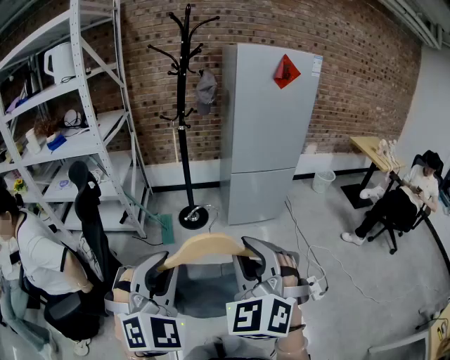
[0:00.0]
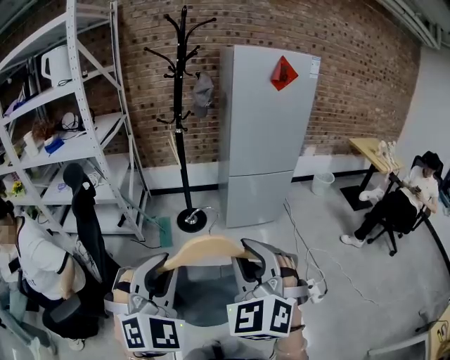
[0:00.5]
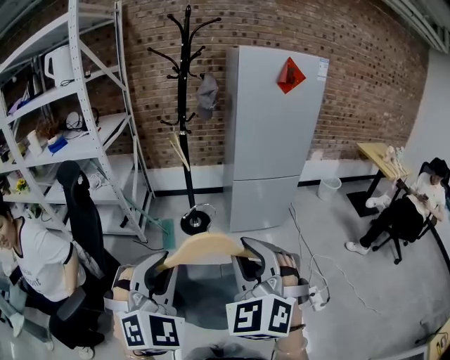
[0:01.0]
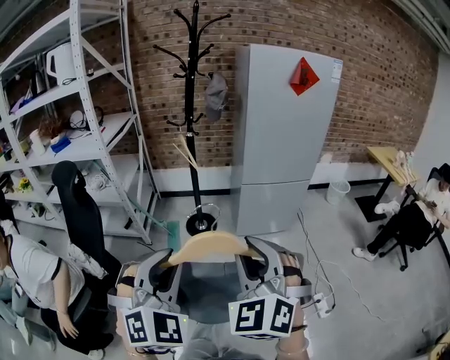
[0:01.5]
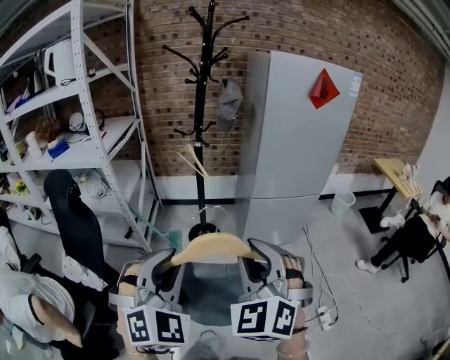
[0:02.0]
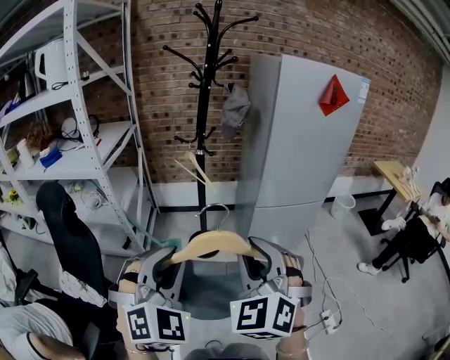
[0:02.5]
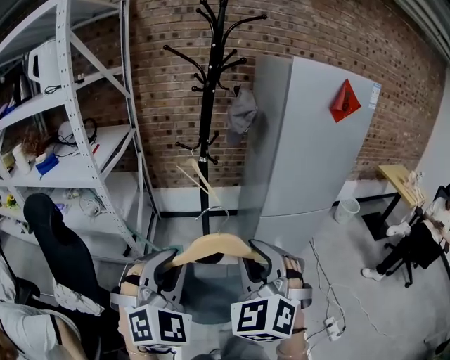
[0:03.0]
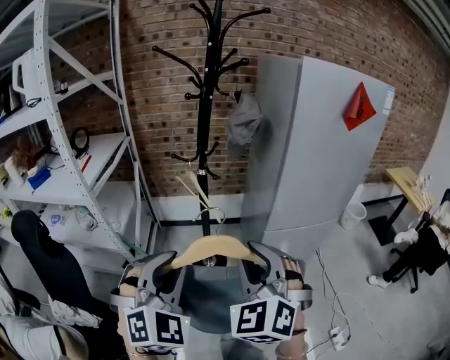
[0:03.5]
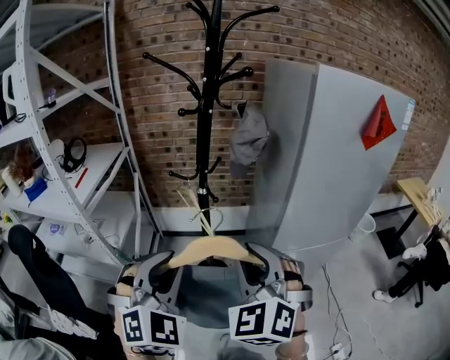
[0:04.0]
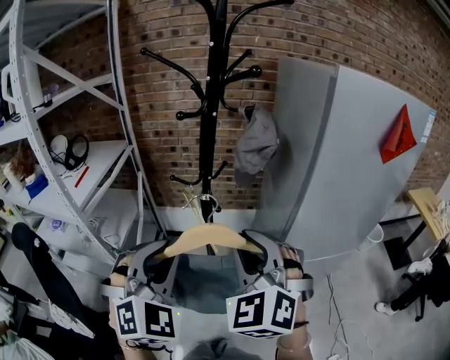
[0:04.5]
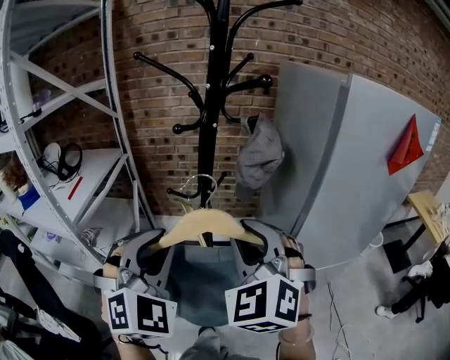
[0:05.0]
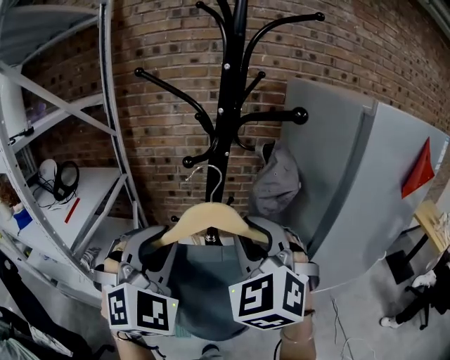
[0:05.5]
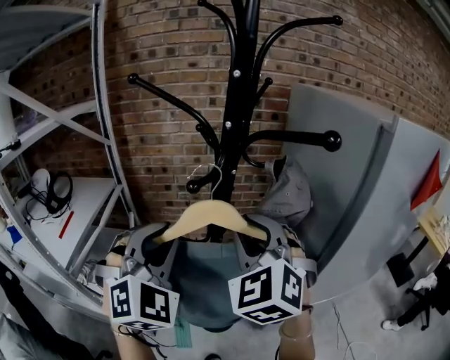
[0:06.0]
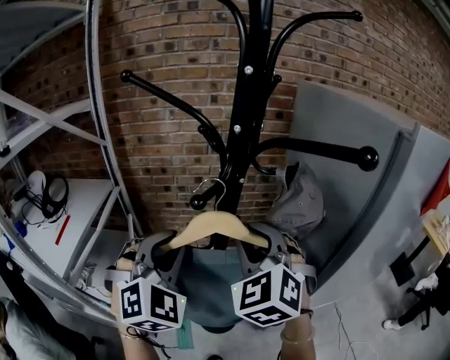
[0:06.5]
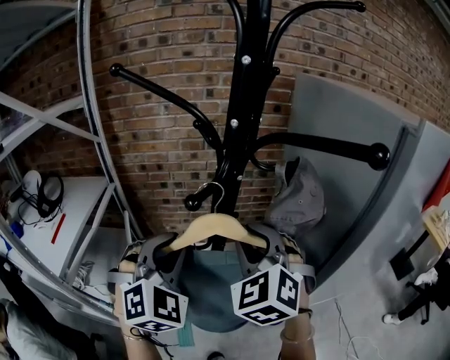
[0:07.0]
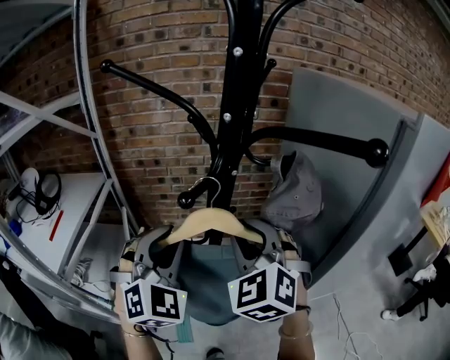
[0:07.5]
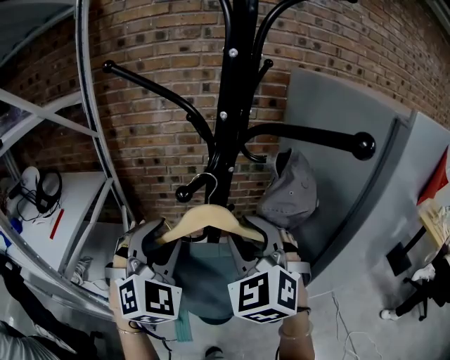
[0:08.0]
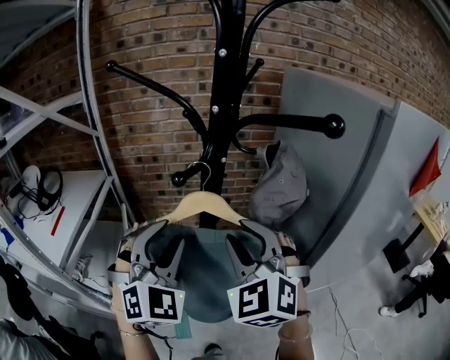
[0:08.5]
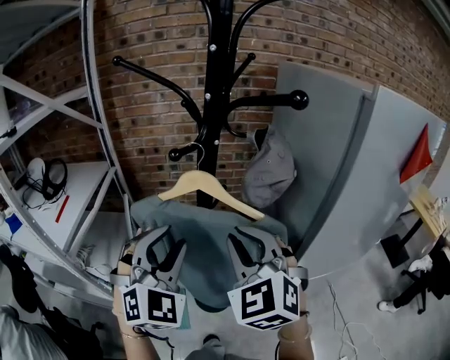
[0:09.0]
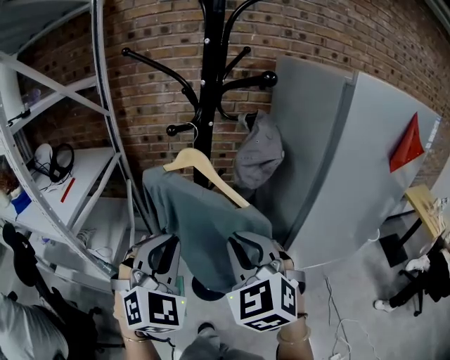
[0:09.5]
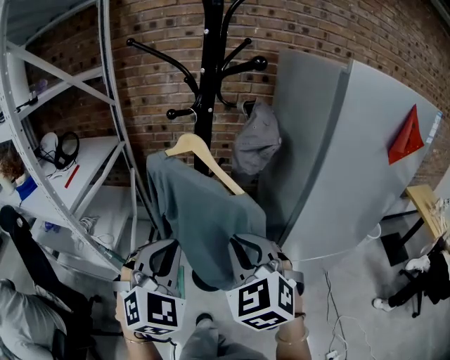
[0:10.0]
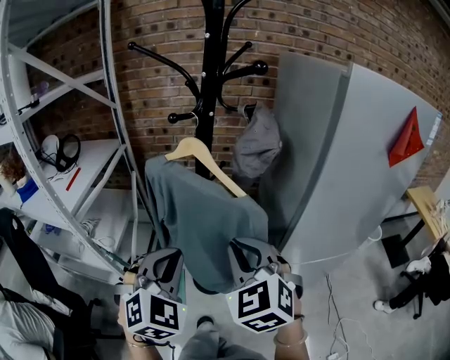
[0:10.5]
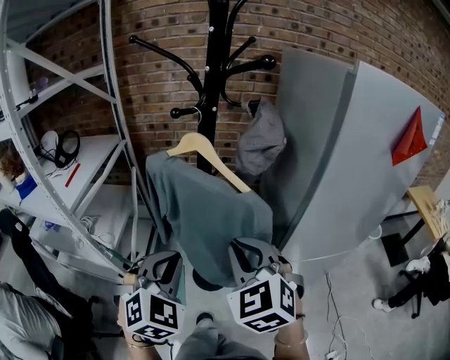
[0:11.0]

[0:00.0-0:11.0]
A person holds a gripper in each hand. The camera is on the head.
0:00.0 to 0:02.0: The grippers both shift forward by roughly 20 cm.
0:02.0 to 0:03.5: The two grippers go roughly 25 cm forward.
0:03.5 to 0:05.5: Both grippers travel together forward, approximately 30 cm.
0:05.5 to 0:07.5: Both grippers travel together forward and downward, about 15 cm.
0:07.5 to 0:09.0: The grippers both shift backward by some 10 cm.
0:09.0 to 0:11.0: Both grippers travel together backward and downward, approximately 15 cm. The left gripper closes its fingers.

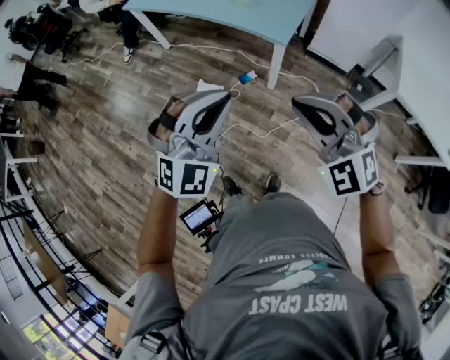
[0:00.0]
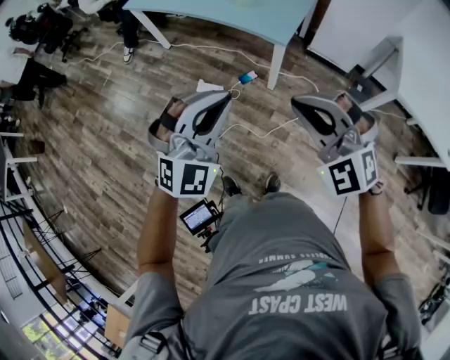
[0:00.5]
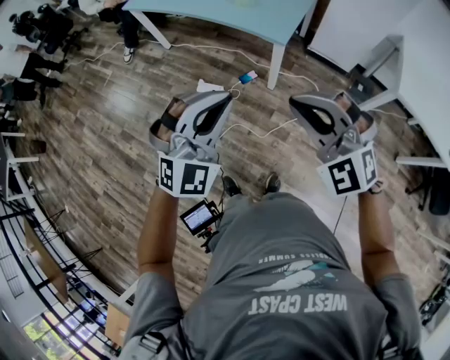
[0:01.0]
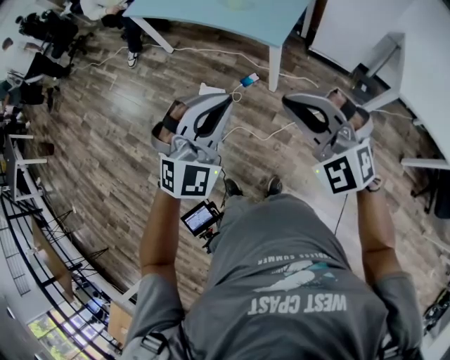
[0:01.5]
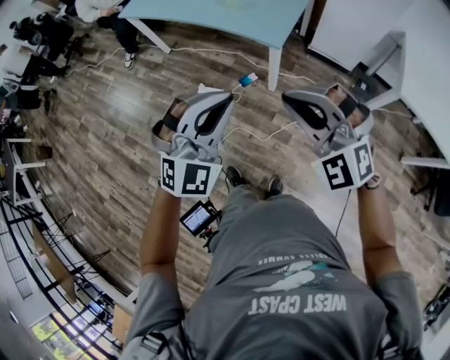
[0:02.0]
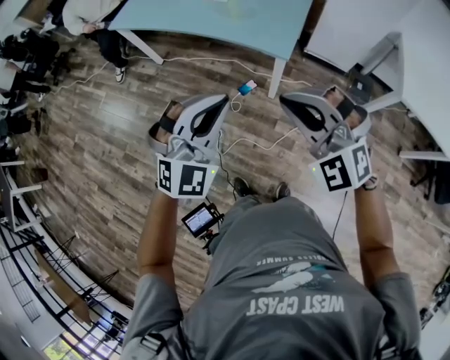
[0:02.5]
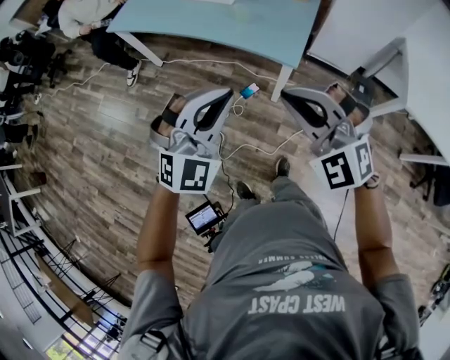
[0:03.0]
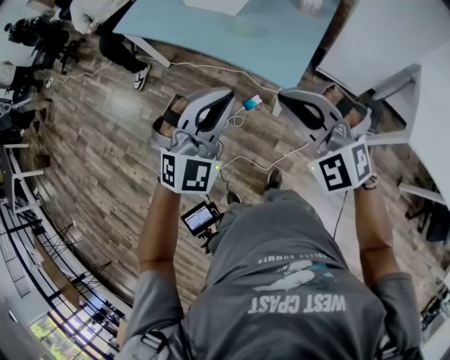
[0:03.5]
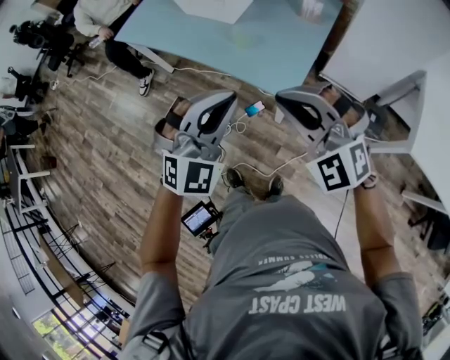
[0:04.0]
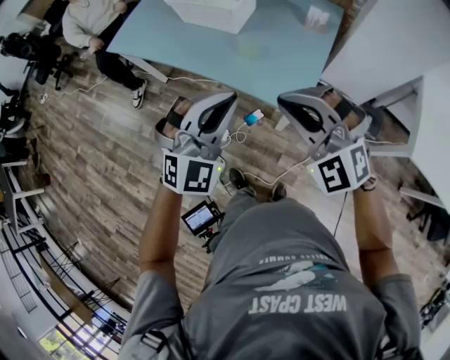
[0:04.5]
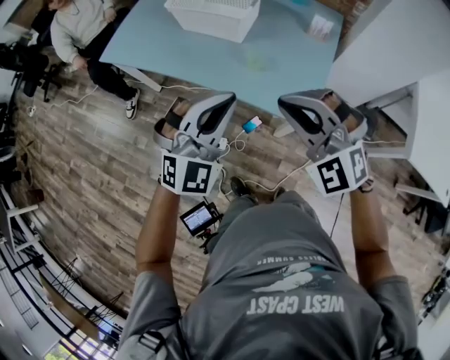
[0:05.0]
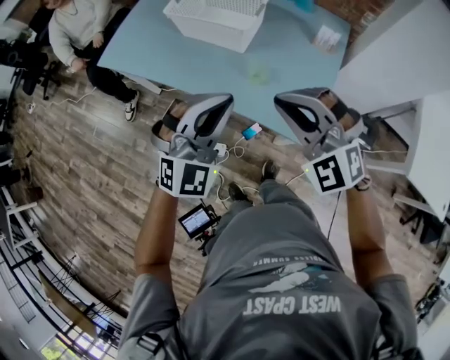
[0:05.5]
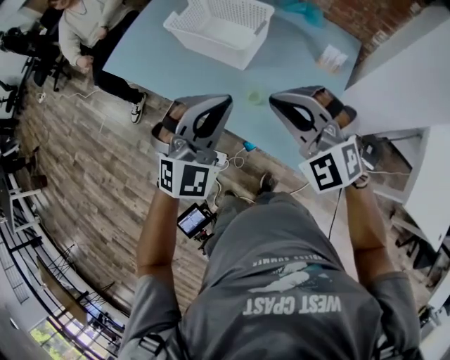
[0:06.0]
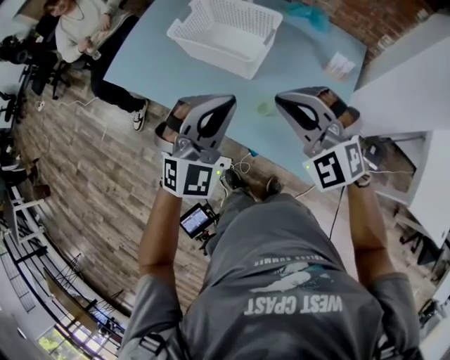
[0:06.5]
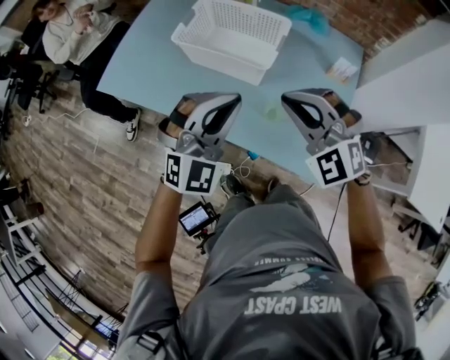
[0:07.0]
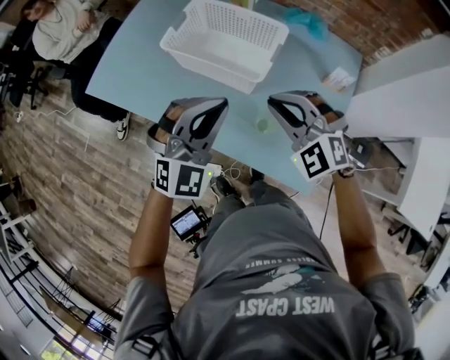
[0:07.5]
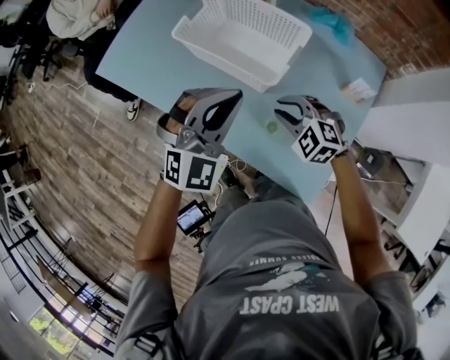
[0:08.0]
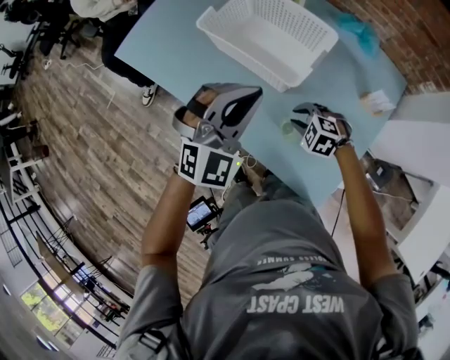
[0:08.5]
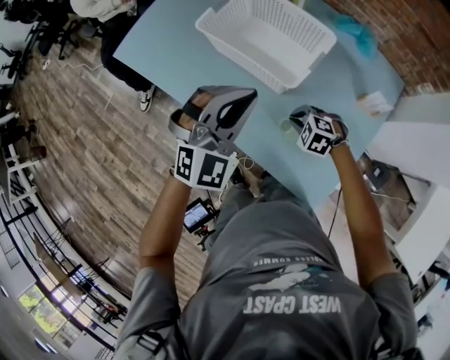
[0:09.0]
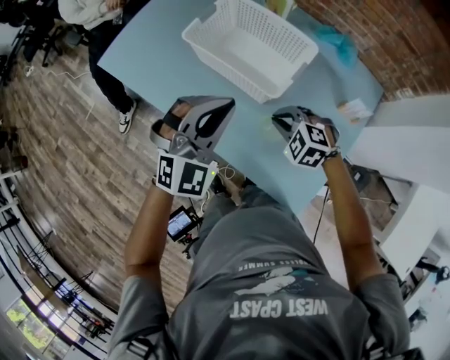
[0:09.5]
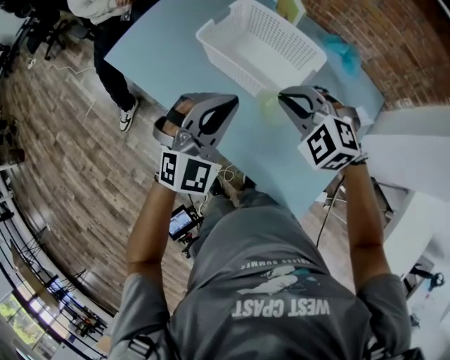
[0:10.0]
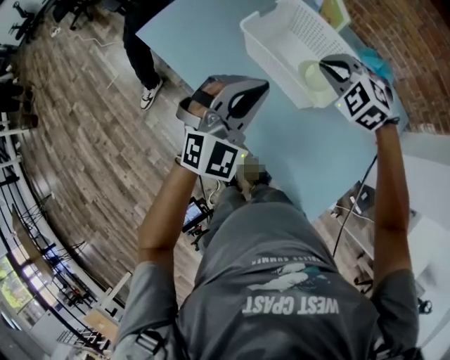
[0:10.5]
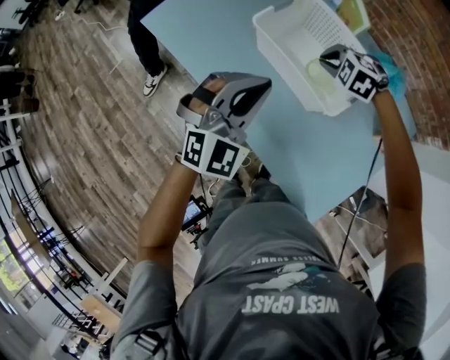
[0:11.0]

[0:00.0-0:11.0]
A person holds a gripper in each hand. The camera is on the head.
0:00.0 to 0:02.0: The right gripper moves roughly 5 cm; the left gripper shifts roughly 5 cm to the right.
0:02.0 to 0:03.5: Both grippers travel together forward, roughly 25 cm.
0:03.5 to 0:05.5: The two grippers go some 25 cm forward.
0:05.5 to 0:07.5: The two grippers go roughly 20 cm forward.
0:07.5 to 0:09.0: The right gripper heads downward, covering some 25 cm, and tips its fingers downward by approximately 40 degrees.
0:09.0 to 0:11.0: The left gripper shifts approximately 10 cm to the left and forward. Meanwhile the right gripper heads forward and upward, covering about 25 cm.

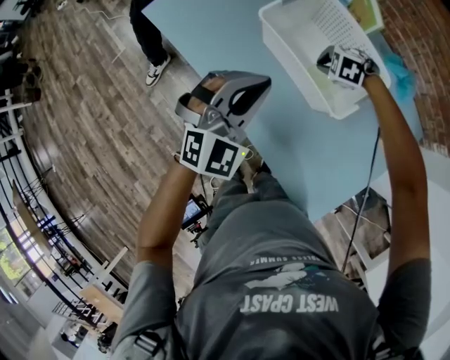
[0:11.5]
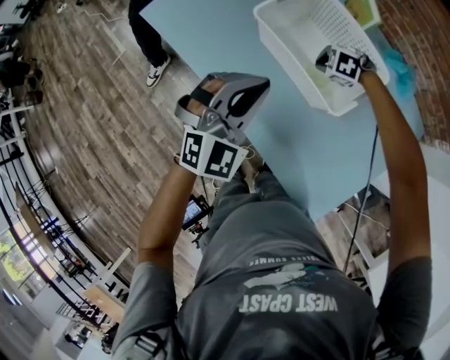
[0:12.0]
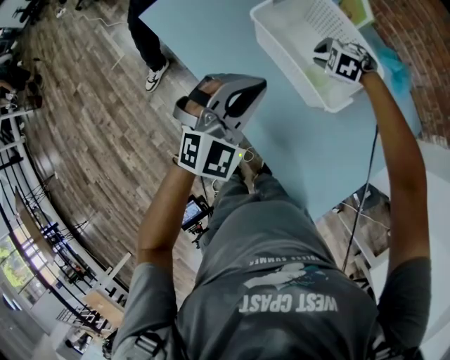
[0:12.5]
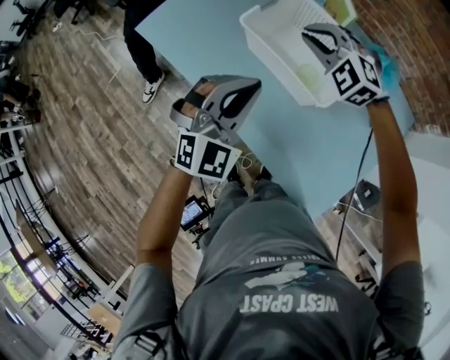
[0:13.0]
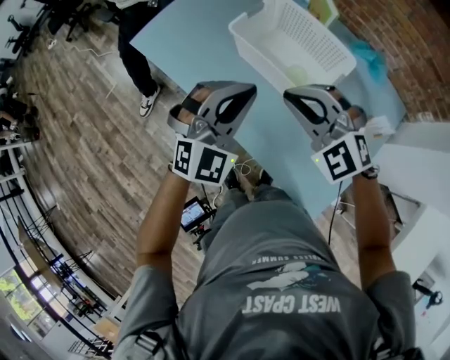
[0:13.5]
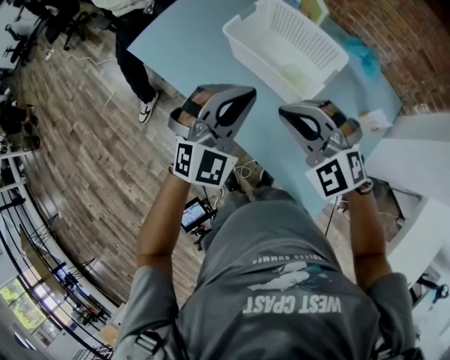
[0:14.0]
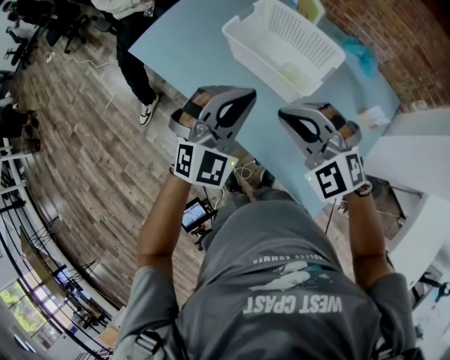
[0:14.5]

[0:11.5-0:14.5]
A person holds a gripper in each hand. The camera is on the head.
0:11.5 to 0:13.0: The right gripper goes approximately 20 cm upward, and angles its fingers upward, by approximately 40 degrees.
0:13.0 to 0:14.5: The right gripper travels backward by roughly 25 cm. The left gripper is displaced backward by approximately 5 cm.

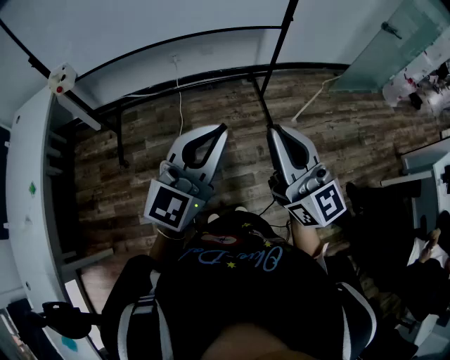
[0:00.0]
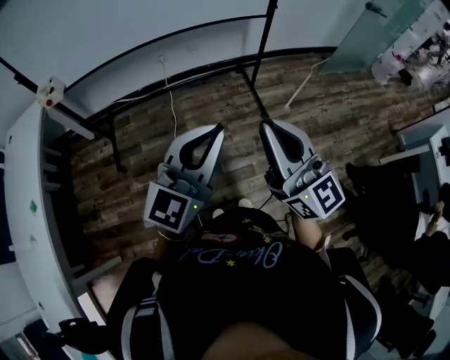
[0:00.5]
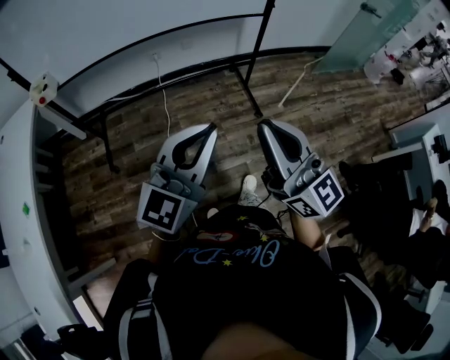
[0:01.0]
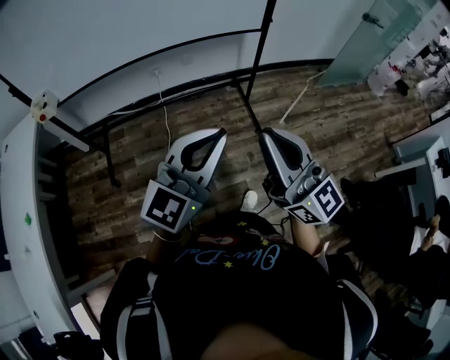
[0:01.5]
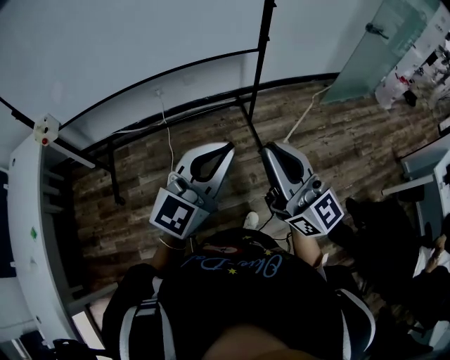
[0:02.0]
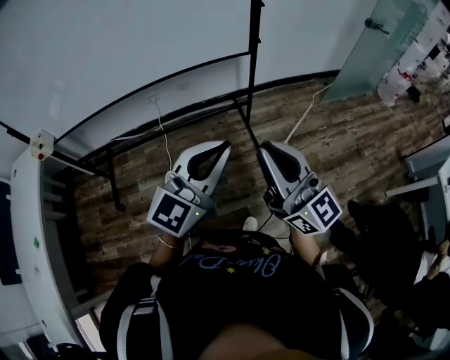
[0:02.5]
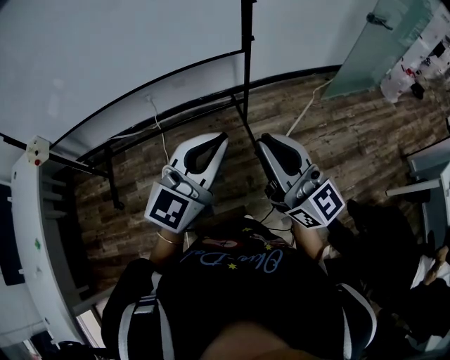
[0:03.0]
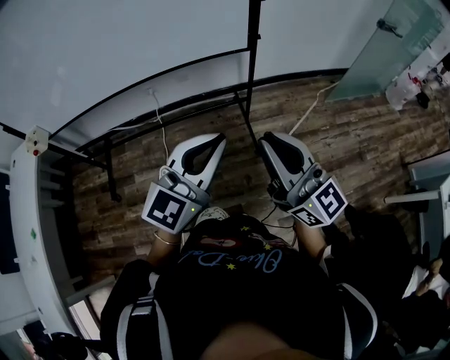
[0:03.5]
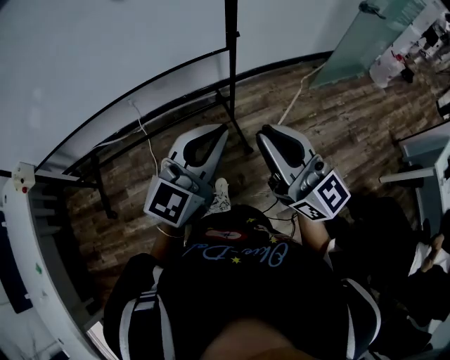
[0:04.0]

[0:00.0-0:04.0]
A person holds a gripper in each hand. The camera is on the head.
0:00.0 to 0:02.0: The grippers both shift forward and to the right by approximately 10 cm.
0:02.0 to 0:04.0: Both grippers travel together forward and to the right, some 20 cm.
